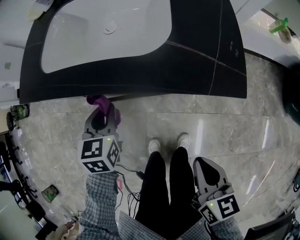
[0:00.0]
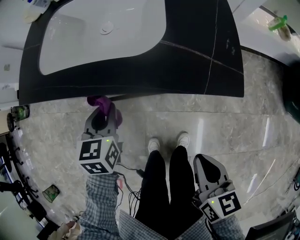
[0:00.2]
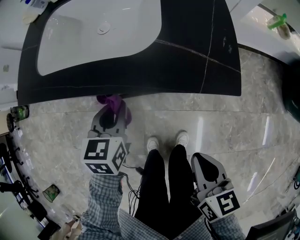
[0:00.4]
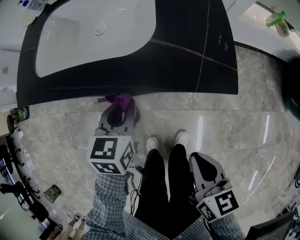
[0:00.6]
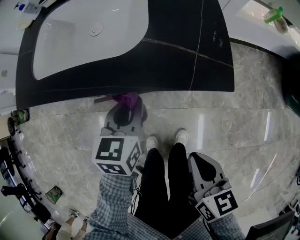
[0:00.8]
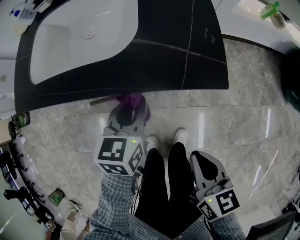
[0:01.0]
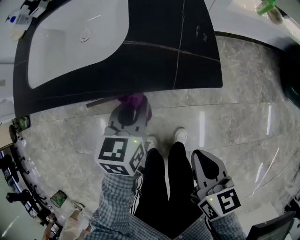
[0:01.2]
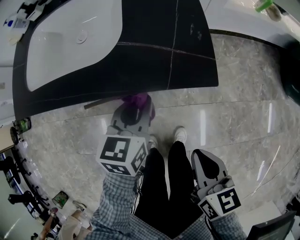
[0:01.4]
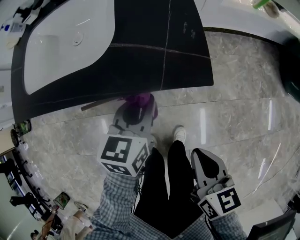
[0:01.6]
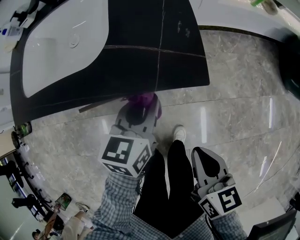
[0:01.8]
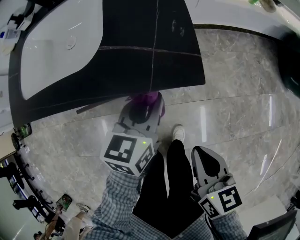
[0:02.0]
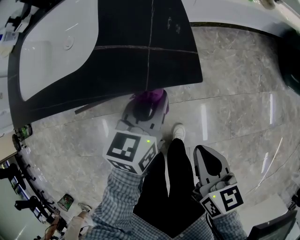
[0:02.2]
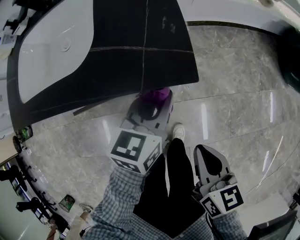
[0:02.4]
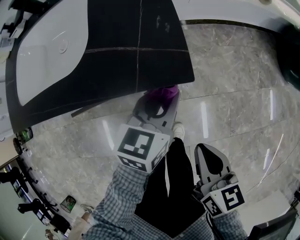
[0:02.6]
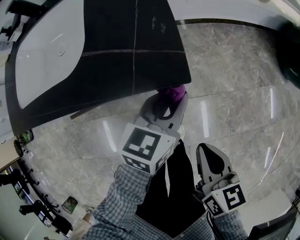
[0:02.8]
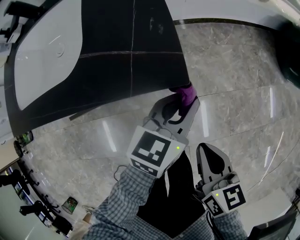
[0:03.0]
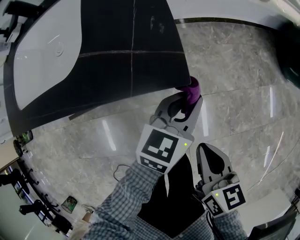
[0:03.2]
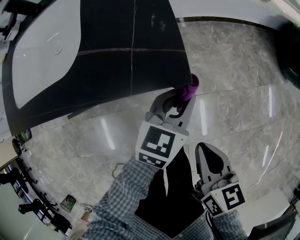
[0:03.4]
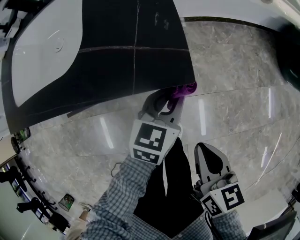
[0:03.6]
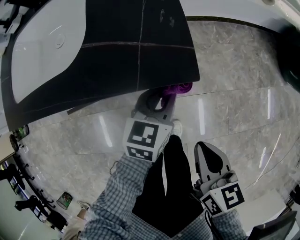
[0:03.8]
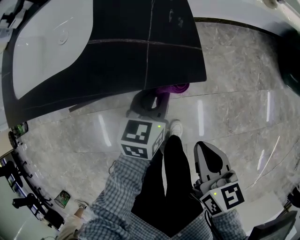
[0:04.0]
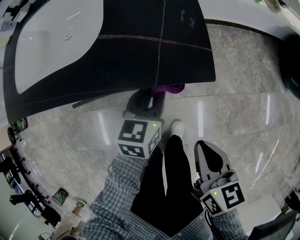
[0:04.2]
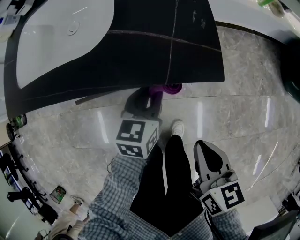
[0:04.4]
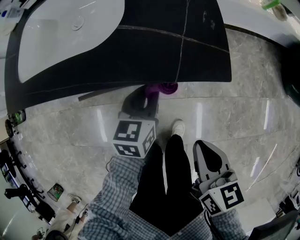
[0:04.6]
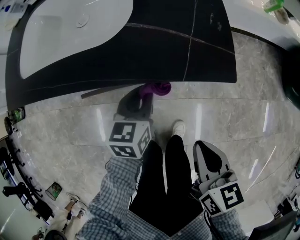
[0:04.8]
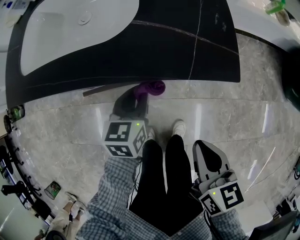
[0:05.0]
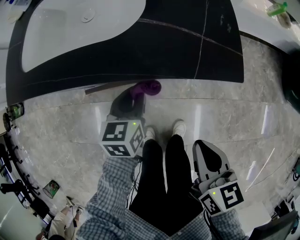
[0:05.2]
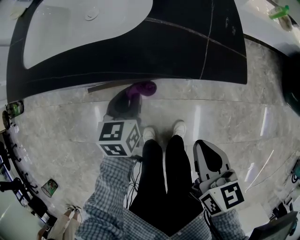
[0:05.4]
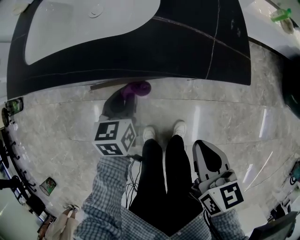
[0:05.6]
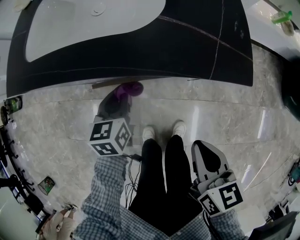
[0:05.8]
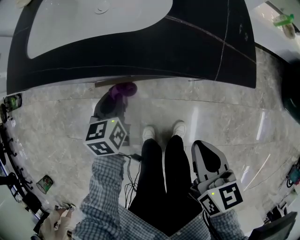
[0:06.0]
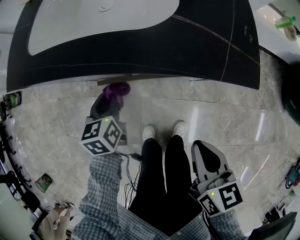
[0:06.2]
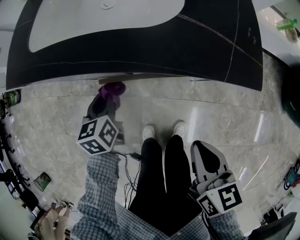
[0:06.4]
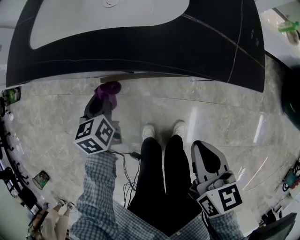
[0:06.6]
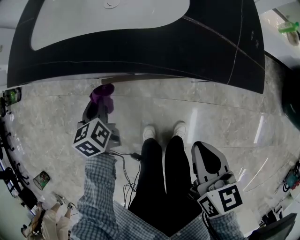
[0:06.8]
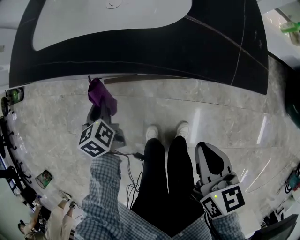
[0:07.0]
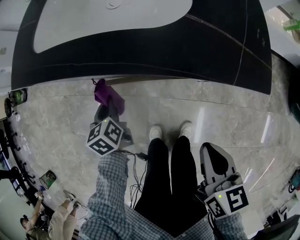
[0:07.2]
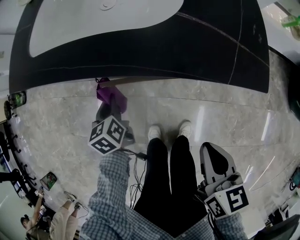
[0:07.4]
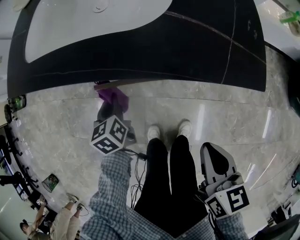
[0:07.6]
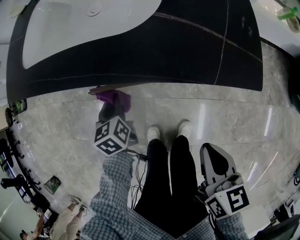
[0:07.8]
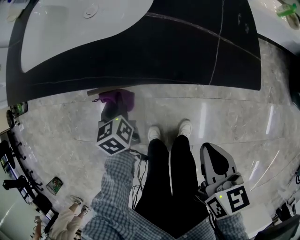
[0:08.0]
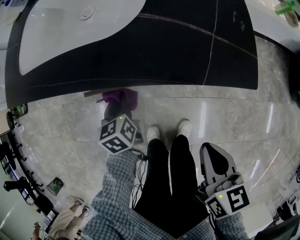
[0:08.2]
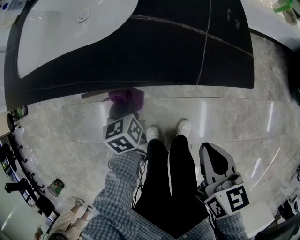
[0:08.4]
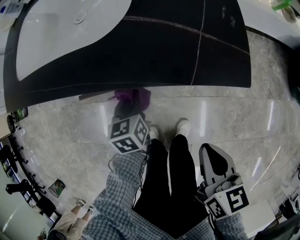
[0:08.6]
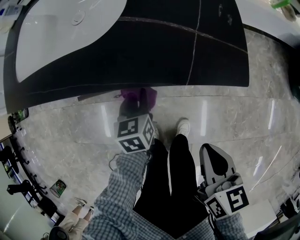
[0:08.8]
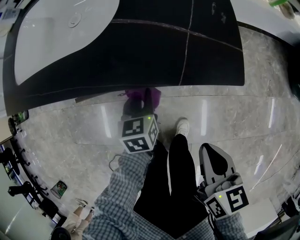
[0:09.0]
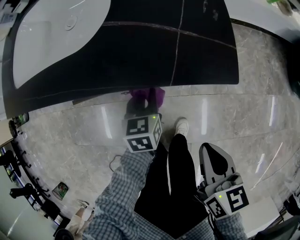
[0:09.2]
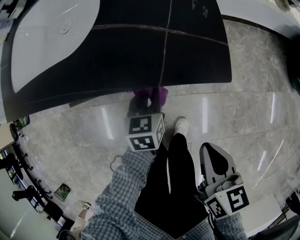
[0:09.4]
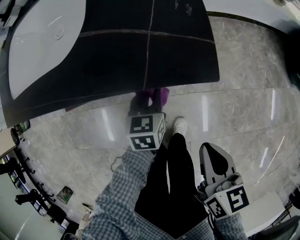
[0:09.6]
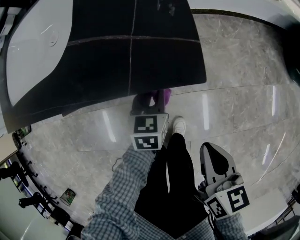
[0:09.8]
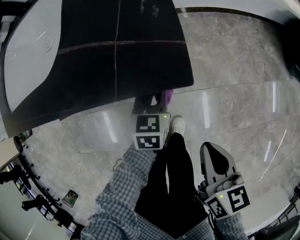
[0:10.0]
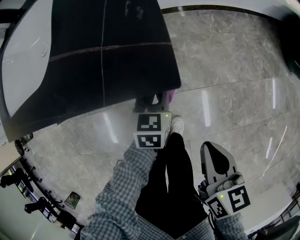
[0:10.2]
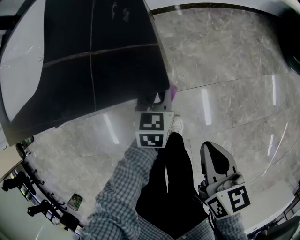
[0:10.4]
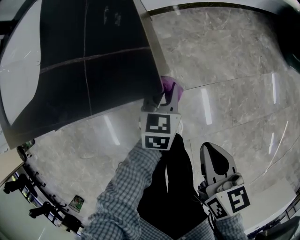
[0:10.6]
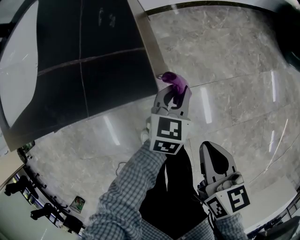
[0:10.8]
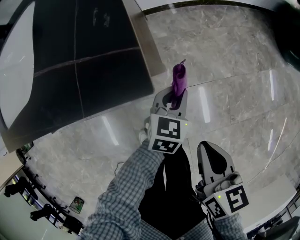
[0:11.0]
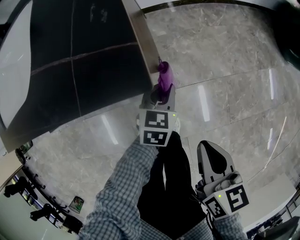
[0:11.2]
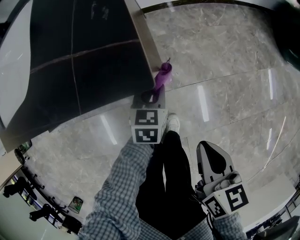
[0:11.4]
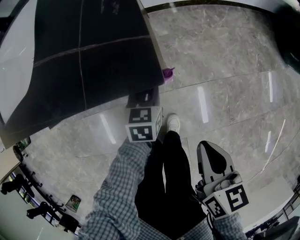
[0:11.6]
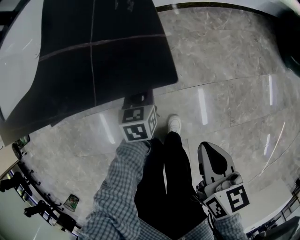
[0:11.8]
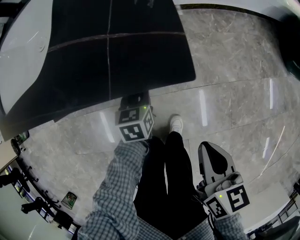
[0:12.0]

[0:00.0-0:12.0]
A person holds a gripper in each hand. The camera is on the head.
0.0 to 1.6 s: The left gripper shifts some 25 cm to the right, and changes its angle by some 30 degrees; the right gripper shifts some 5 cm to the right.
1.6 to 3.0 s: The right gripper goes some 5 cm to the right. Meanwhile the left gripper shifts approximately 15 cm to the right, and rotates about 20 degrees.
3.0 to 4.4 s: The right gripper shifts approximately 5 cm to the left; the left gripper heads to the left and downward, covering approximately 15 cm, and turns by approximately 20 degrees.
4.4 to 6.0 s: The right gripper shifts about 10 cm to the left; the left gripper travels to the left by about 20 cm, and swivels some 20 degrees.
6.0 to 7.6 s: The left gripper shifts some 5 cm downward.
7.6 to 9.0 s: The left gripper is displaced to the right by approximately 20 cm, and changes its angle by about 20 degrees. Meanwhile the right gripper moves roughly 5 cm.
9.0 to 10.4 s: The left gripper travels to the right by about 20 cm, and rotates approximately 20 degrees; the right gripper travels to the right by approximately 10 cm.
10.4 to 12.0 s: The left gripper moves to the left, roughly 10 cm.

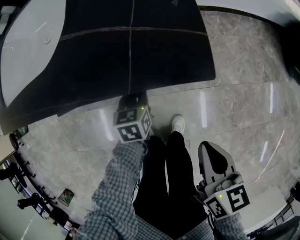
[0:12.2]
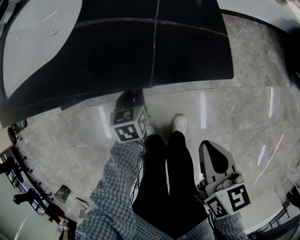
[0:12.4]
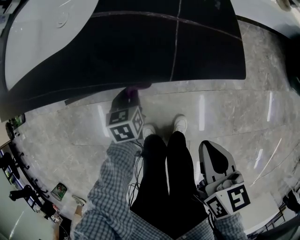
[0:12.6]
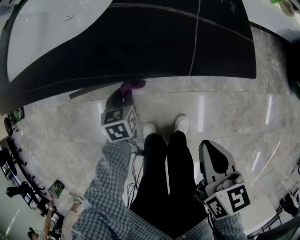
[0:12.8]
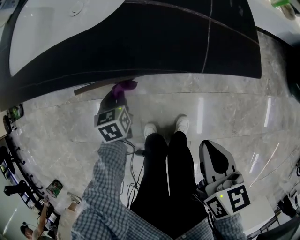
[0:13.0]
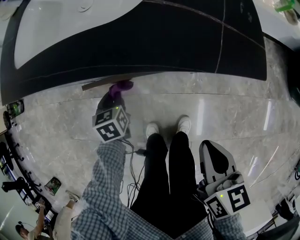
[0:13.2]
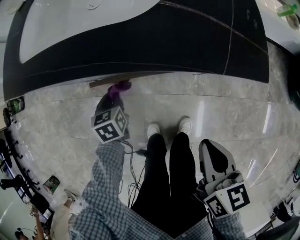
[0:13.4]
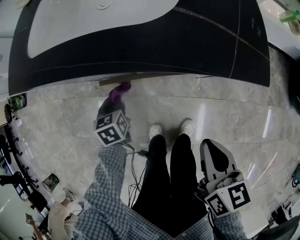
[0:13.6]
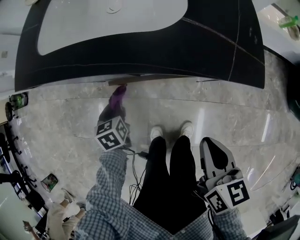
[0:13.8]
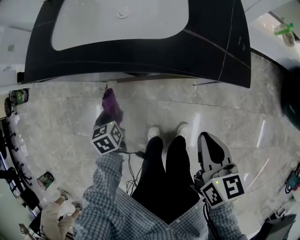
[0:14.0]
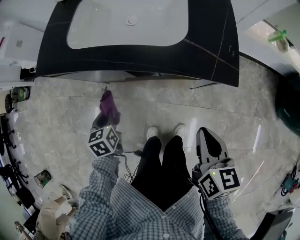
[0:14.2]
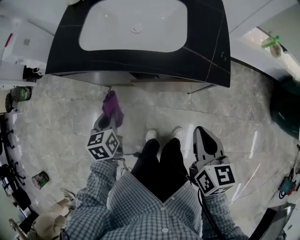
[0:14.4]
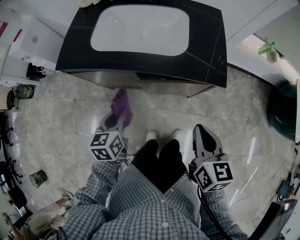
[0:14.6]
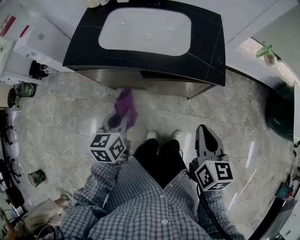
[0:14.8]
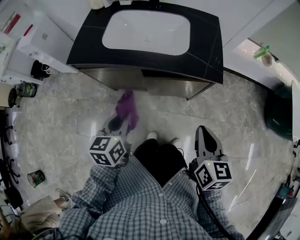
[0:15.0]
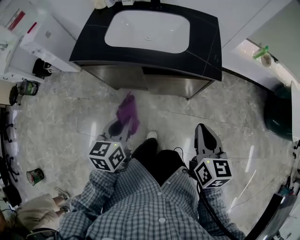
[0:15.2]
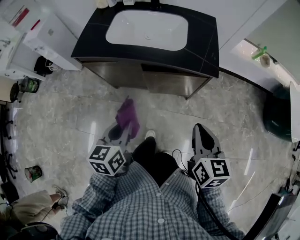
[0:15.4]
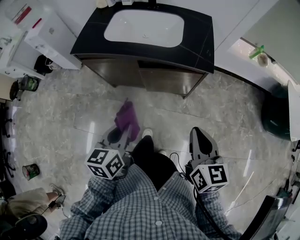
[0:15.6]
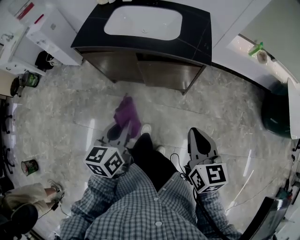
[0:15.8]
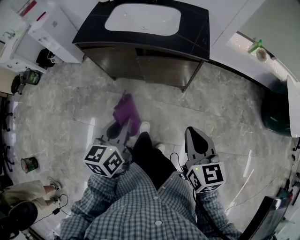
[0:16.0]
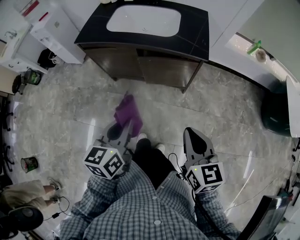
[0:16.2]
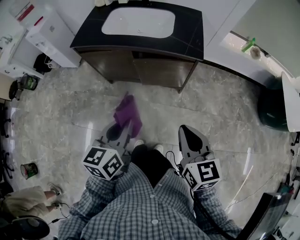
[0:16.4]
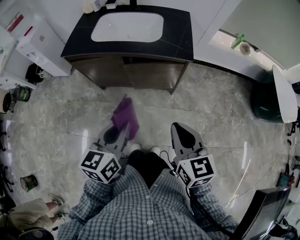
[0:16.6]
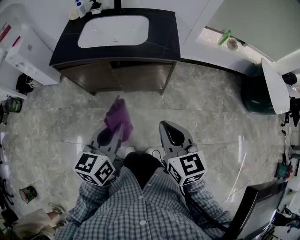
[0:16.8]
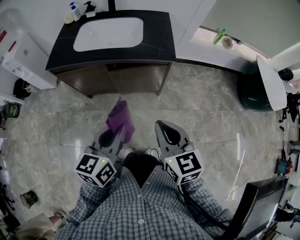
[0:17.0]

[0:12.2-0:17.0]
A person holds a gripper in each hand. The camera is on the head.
12.2 to 13.8 s: The left gripper goes approximately 30 cm to the left, and changes its angle by roughly 20 degrees, while the right gripper is displaced to the left and upward by about 15 cm.
13.8 to 15.4 s: The left gripper heads upward and backward, covering about 40 cm, and rotates approximately 30 degrees. Meanwhile the right gripper moves upward and backward, roughly 25 cm.
15.4 to 17.0 s: The right gripper is displaced backward by about 10 cm. The left gripper goes approximately 15 cm to the right, upward and backward.

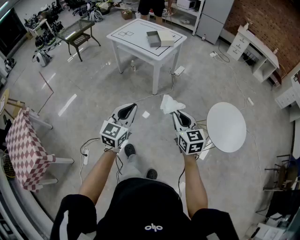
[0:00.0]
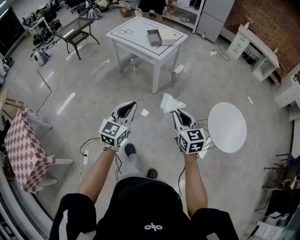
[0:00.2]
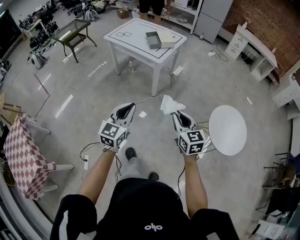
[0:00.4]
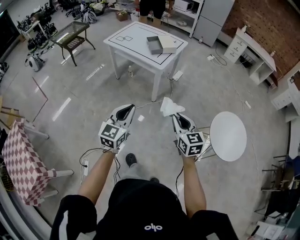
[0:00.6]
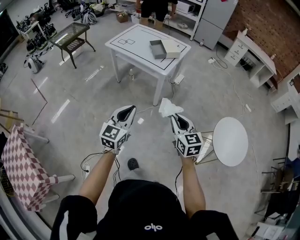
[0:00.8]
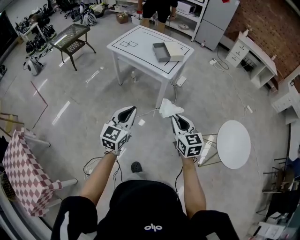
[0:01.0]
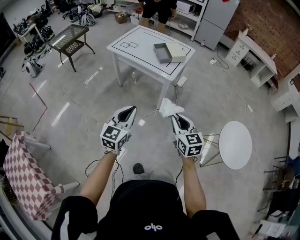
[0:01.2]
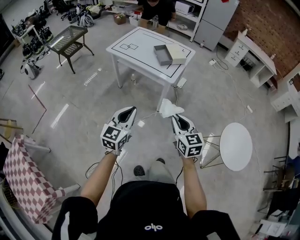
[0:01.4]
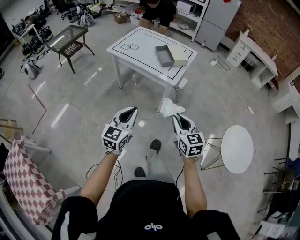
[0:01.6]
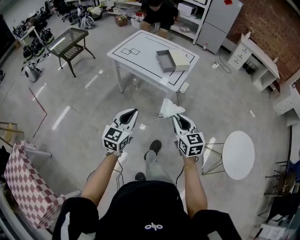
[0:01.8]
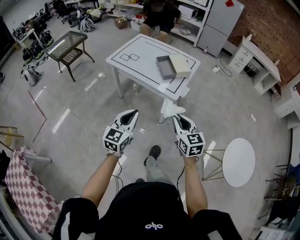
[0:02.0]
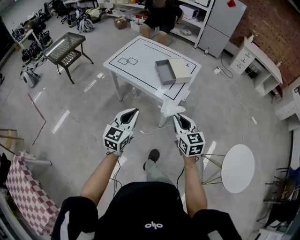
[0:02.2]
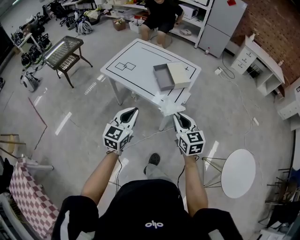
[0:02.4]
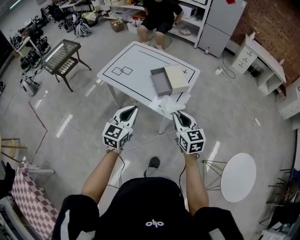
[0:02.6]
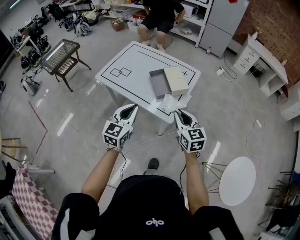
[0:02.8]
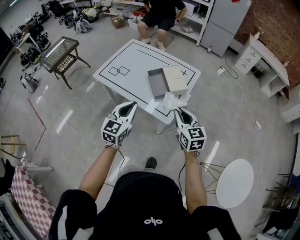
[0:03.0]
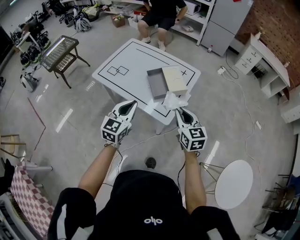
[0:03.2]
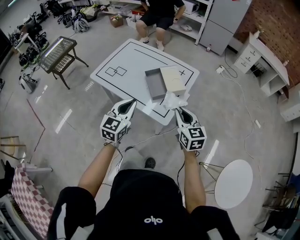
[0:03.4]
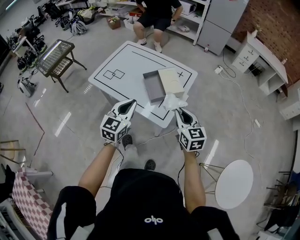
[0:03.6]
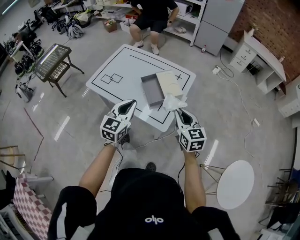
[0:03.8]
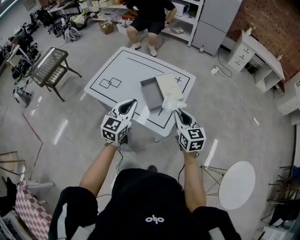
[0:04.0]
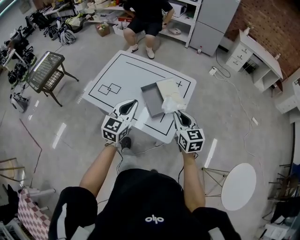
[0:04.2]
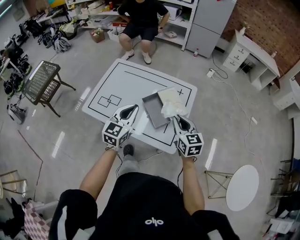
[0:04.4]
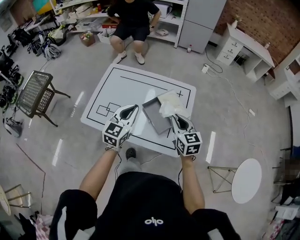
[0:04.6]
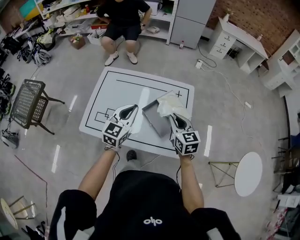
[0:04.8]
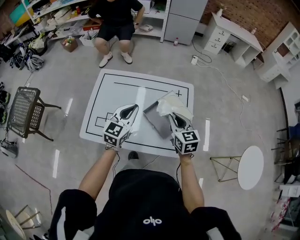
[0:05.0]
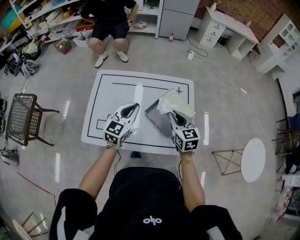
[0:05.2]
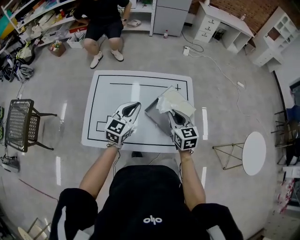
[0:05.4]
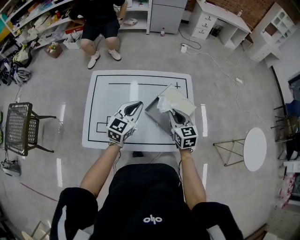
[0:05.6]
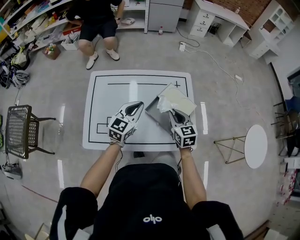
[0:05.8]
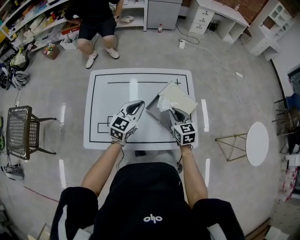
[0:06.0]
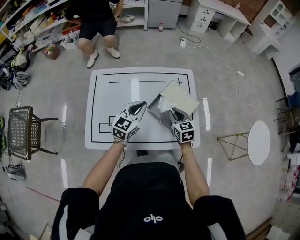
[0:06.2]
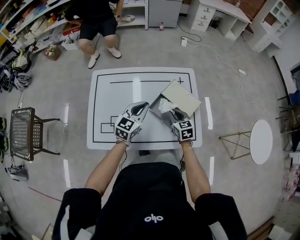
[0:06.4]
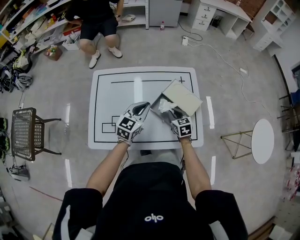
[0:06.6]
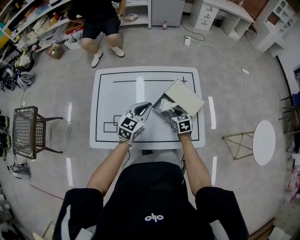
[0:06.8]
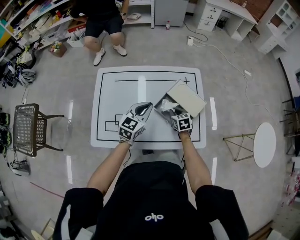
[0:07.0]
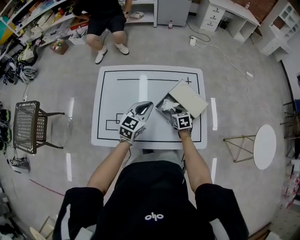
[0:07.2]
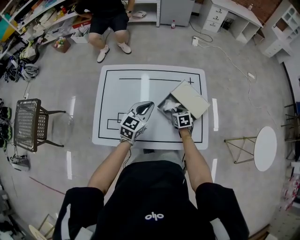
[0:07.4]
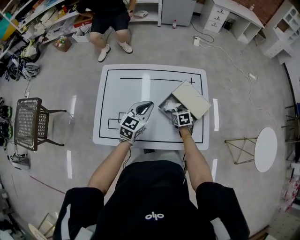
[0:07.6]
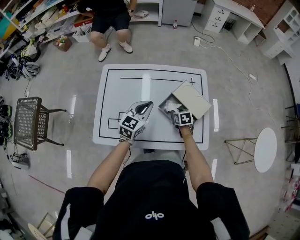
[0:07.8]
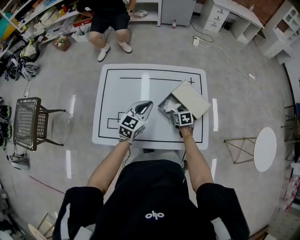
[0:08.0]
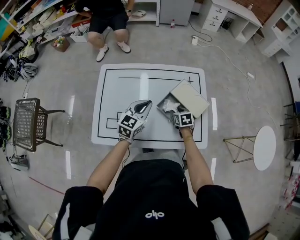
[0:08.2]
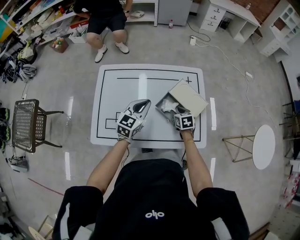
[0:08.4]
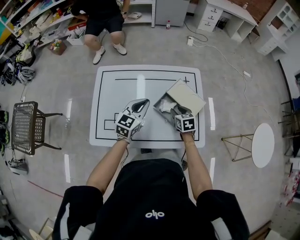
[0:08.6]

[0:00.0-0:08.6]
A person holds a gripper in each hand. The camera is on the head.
0.0 to 1.4 s: Both grippers move forward and to the left, roughly 30 cm.
1.4 to 2.8 s: The pair of grippers is taken forward, some 40 cm.
2.8 to 4.4 s: Both grippers move forward, about 25 cm.
4.4 to 5.8 s: The left gripper ends up roughly 20 cm from where it was, and swivels roughly 30 degrees, while the right gripper ends up approximately 20 cm from where it was, and rotates about 20 degrees.
5.8 to 7.2 s: The right gripper travels downward by about 20 cm, and turns by some 20 degrees.
7.2 to 8.6 s: The right gripper travels upward by approximately 5 cm, and opens.
